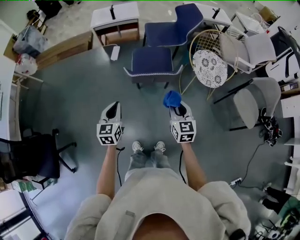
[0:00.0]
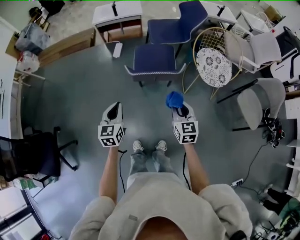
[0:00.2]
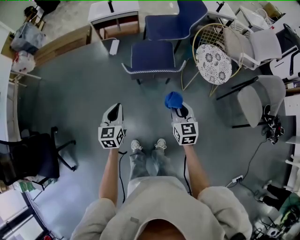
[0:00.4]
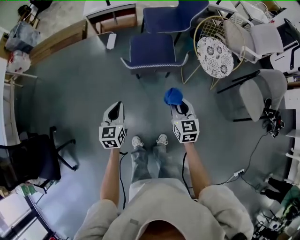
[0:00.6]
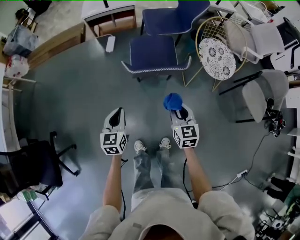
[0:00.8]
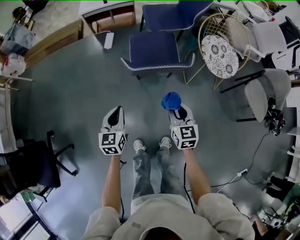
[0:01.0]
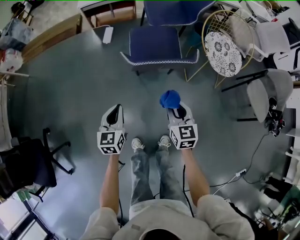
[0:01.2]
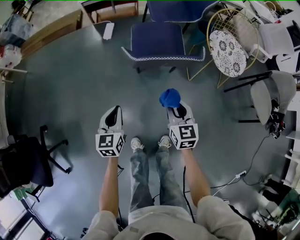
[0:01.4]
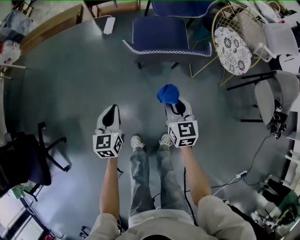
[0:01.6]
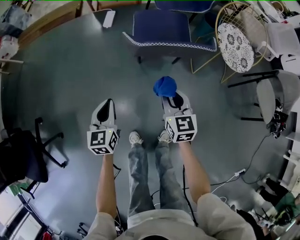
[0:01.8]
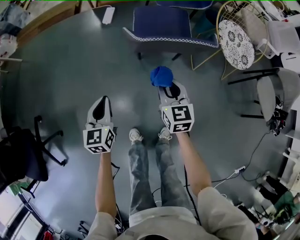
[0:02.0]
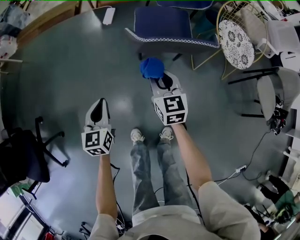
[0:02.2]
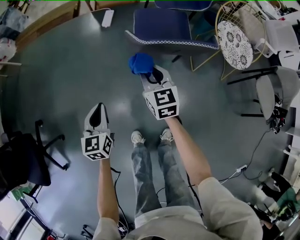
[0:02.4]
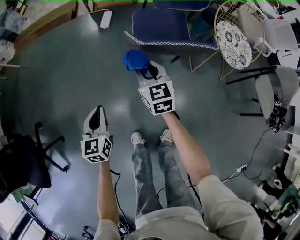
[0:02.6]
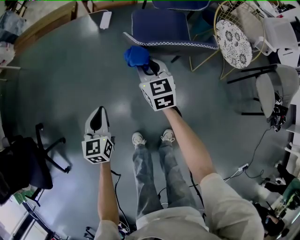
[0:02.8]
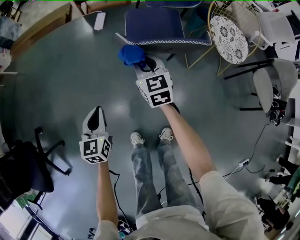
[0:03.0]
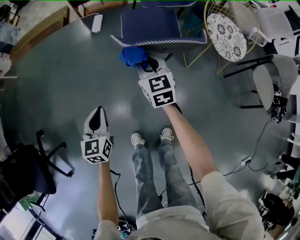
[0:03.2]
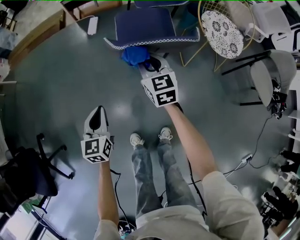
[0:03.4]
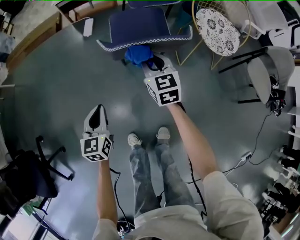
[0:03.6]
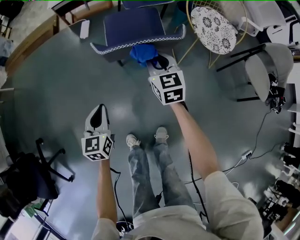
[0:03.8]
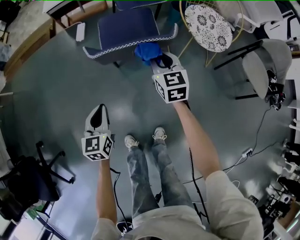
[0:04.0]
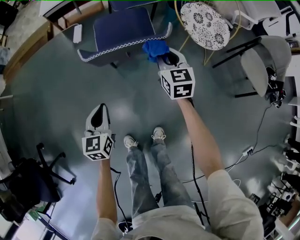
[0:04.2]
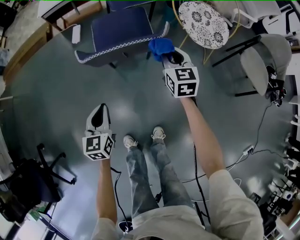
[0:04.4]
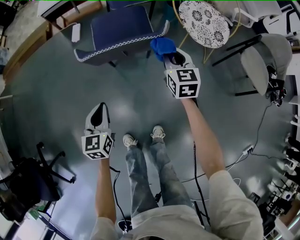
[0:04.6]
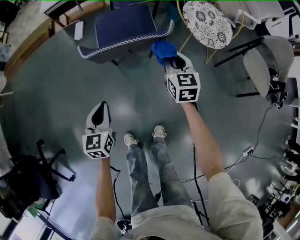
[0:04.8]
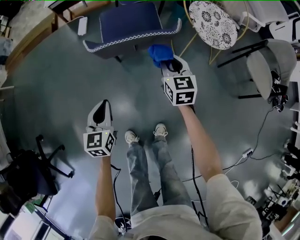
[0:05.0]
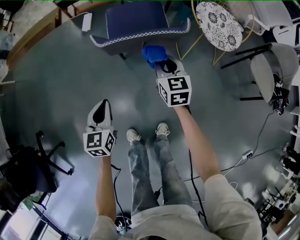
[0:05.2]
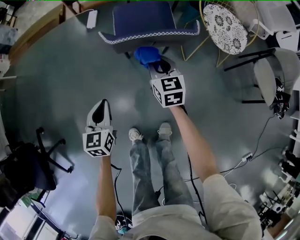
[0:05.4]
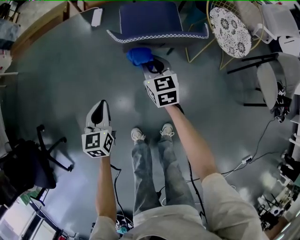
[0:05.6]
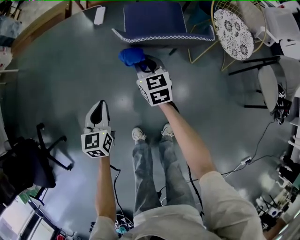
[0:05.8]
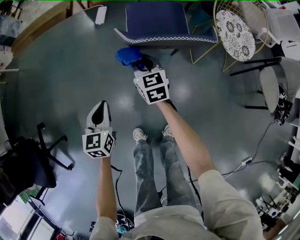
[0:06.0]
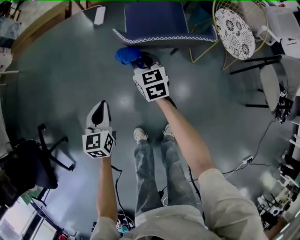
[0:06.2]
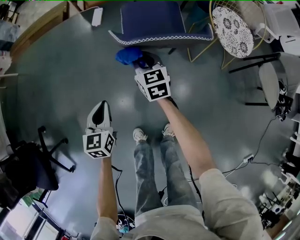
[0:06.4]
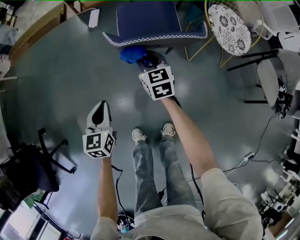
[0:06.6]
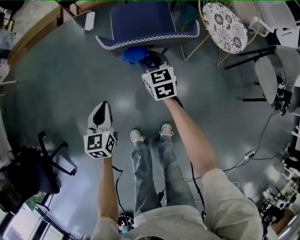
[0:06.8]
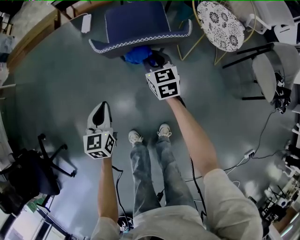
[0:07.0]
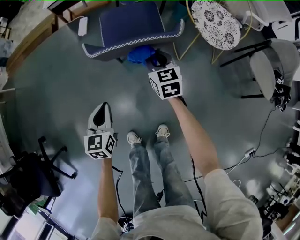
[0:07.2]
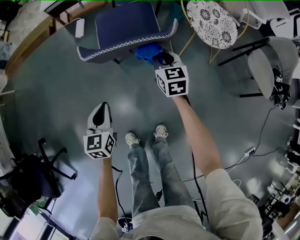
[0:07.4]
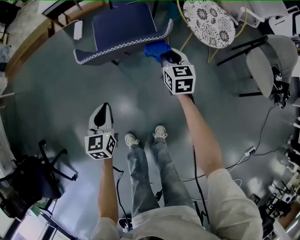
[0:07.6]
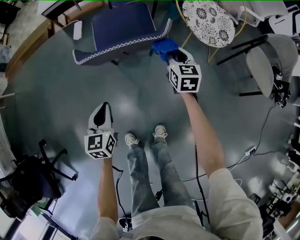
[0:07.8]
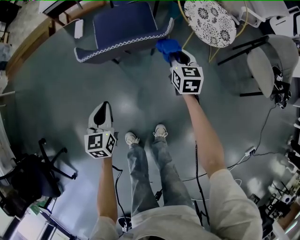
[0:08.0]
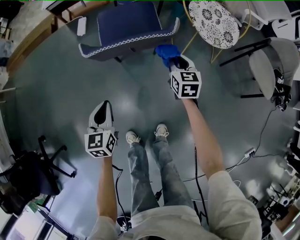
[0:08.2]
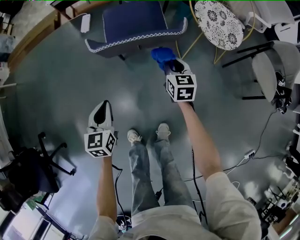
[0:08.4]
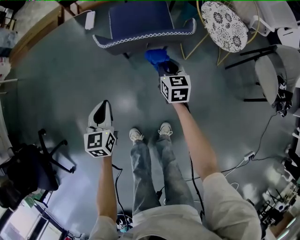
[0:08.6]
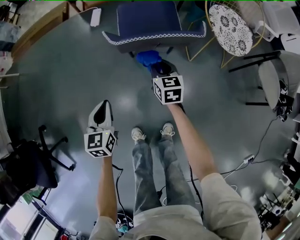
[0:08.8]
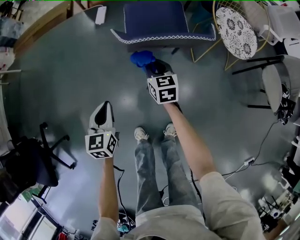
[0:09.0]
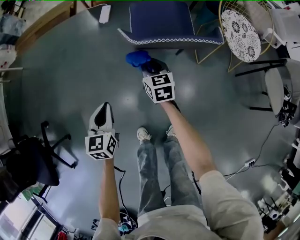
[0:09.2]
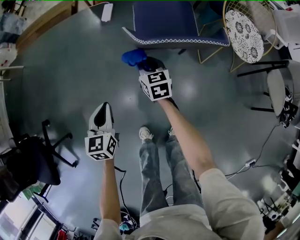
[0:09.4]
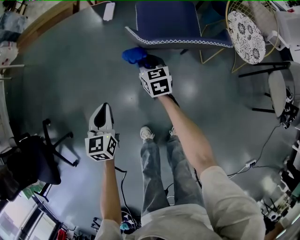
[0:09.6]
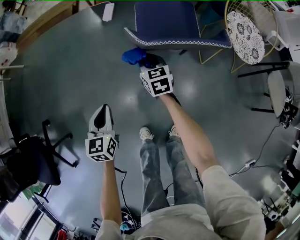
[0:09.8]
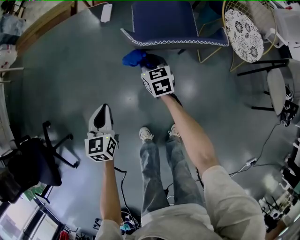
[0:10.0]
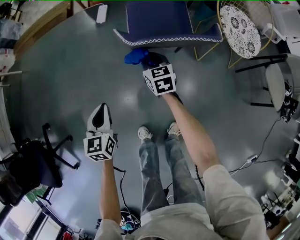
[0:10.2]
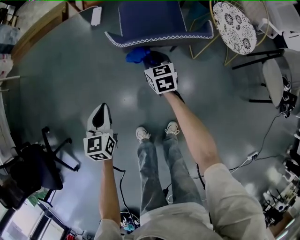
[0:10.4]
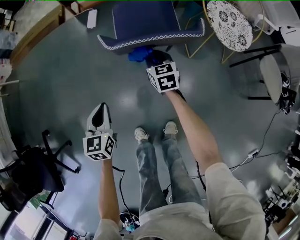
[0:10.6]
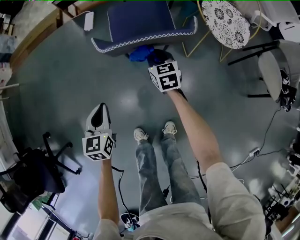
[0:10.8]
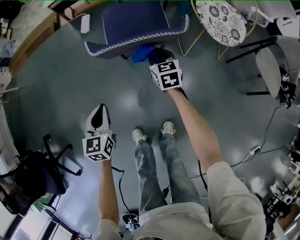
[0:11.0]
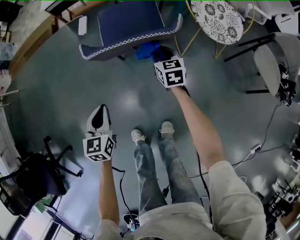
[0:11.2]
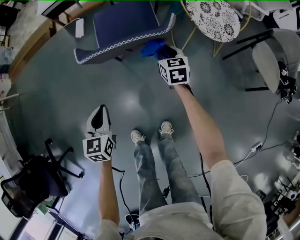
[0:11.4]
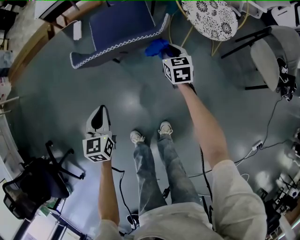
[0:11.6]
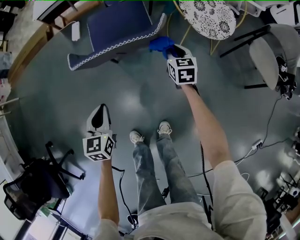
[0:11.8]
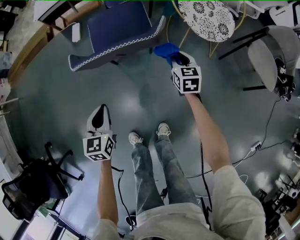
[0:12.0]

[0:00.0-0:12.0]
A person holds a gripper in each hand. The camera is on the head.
0:00.0 to 0:01.6: The right gripper shifts some 25 cm downward and to the left, while the left gripper is displaced downward by roughly 25 cm.
0:01.6 to 0:03.0: The left gripper travels to the left by approximately 5 cm; the right gripper goes roughly 15 cm forward and to the left.
0:03.0 to 0:04.4: The right gripper heads to the right, covering approximately 30 cm. Meanwhile the left gripper travels to the right by about 20 cm.
0:04.4 to 0:06.0: The left gripper is displaced to the left by some 15 cm. The right gripper heads to the left, covering about 30 cm, and turns by approximately 20 degrees.
0:06.0 to 0:07.6: The left gripper travels to the right by some 15 cm, while the right gripper moves to the right, about 30 cm.
0:07.6 to 0:09.0: The right gripper travels to the left by approximately 20 cm, while the left gripper shifts about 15 cm to the left.
0:09.0 to 0:10.4: The right gripper reaches about 10 cm to the left, then returns.
0:10.4 to 0:12.0: The right gripper moves to the right, some 30 cm. The left gripper is displaced to the right by some 15 cm.

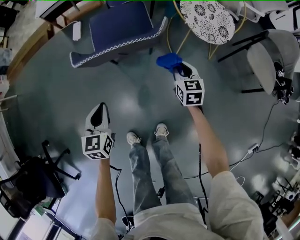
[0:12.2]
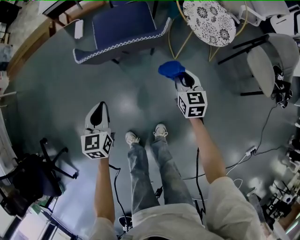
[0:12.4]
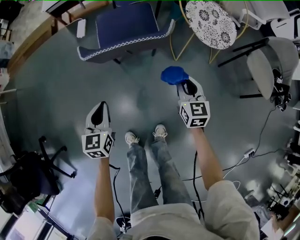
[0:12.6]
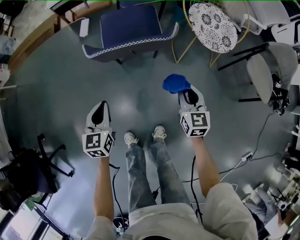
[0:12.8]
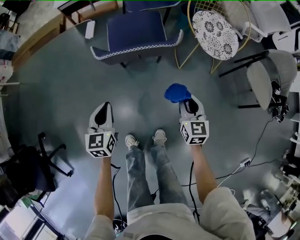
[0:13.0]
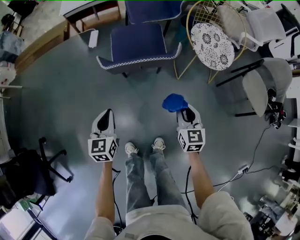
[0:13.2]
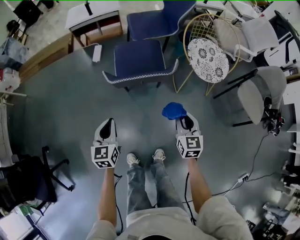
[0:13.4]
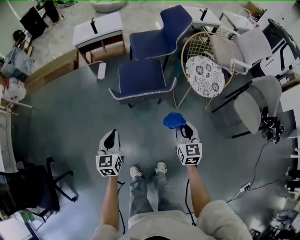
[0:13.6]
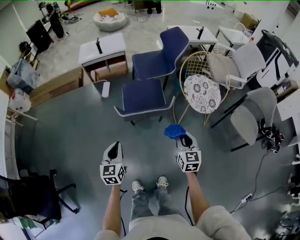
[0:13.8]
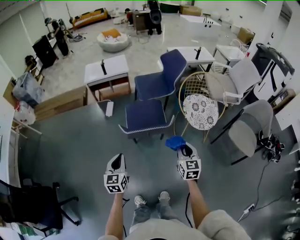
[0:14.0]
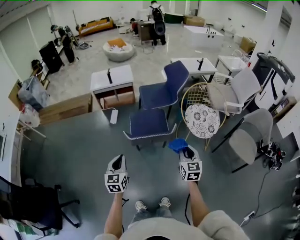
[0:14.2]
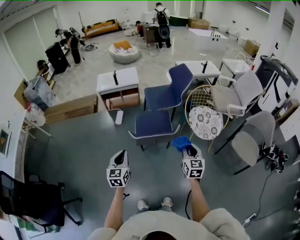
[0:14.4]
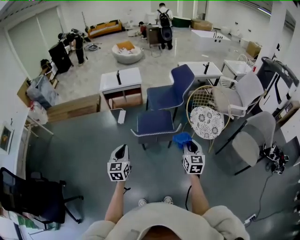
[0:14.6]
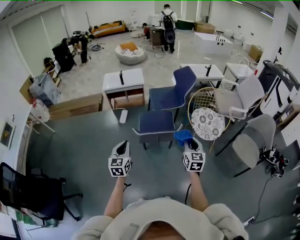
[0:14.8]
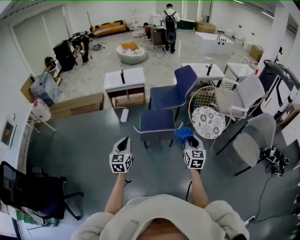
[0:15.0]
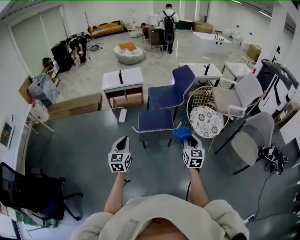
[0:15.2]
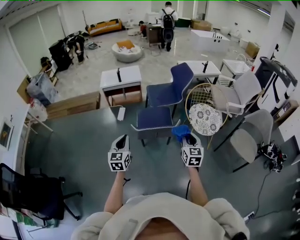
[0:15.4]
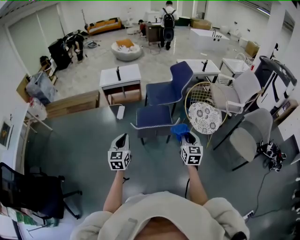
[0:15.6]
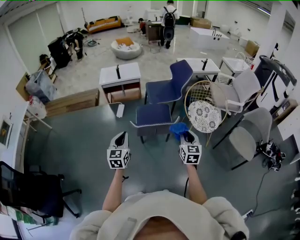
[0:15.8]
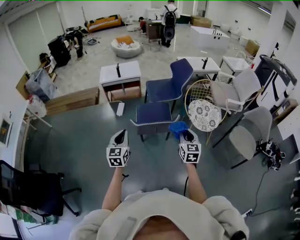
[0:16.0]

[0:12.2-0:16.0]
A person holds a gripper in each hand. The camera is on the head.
0:12.2 to 0:13.4: The left gripper travels upward by approximately 10 cm; the right gripper goes approximately 20 cm upward and backward.
0:13.4 to 0:14.8: The grippers both shift upward by approximately 20 cm.
0:14.8 to 0:16.0: The grippers move only a little.

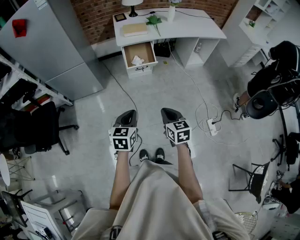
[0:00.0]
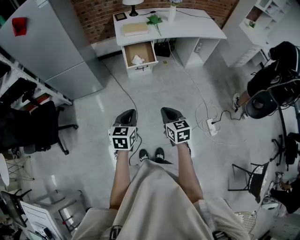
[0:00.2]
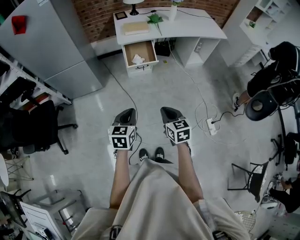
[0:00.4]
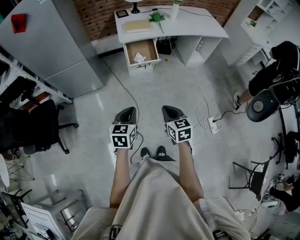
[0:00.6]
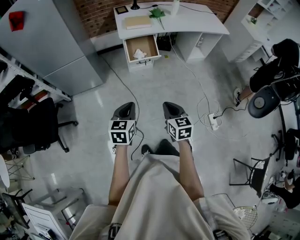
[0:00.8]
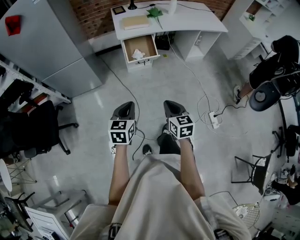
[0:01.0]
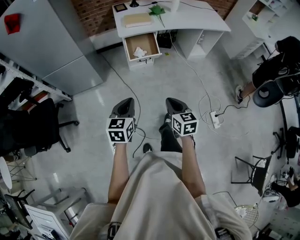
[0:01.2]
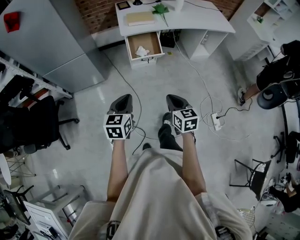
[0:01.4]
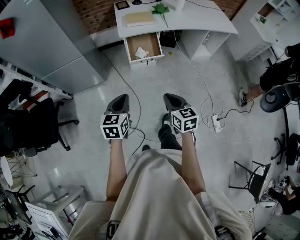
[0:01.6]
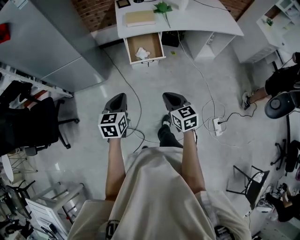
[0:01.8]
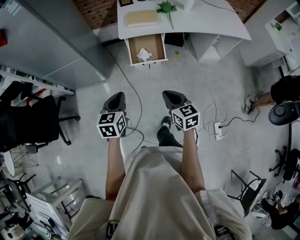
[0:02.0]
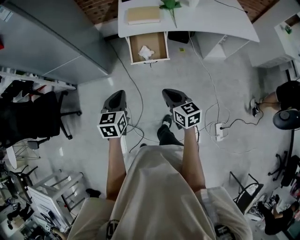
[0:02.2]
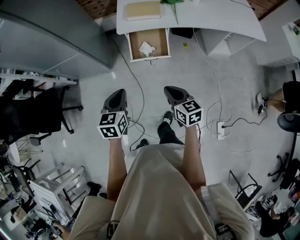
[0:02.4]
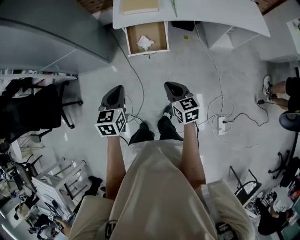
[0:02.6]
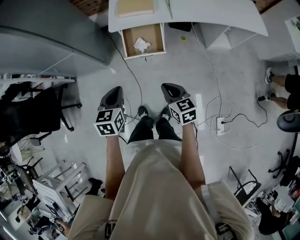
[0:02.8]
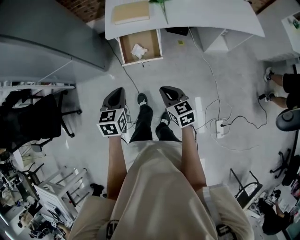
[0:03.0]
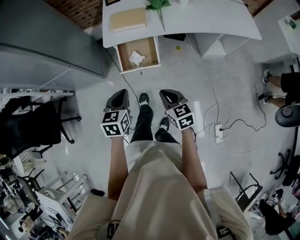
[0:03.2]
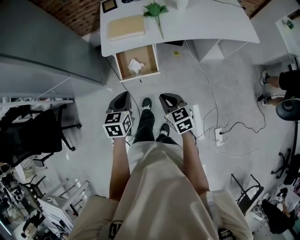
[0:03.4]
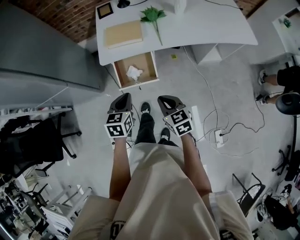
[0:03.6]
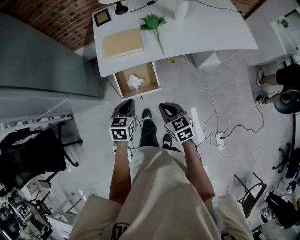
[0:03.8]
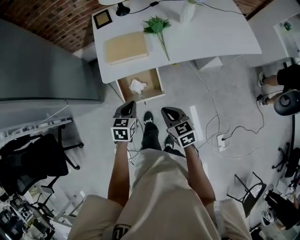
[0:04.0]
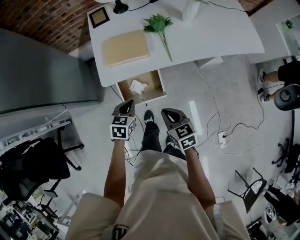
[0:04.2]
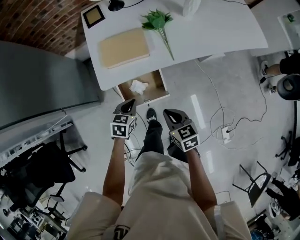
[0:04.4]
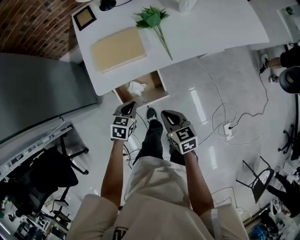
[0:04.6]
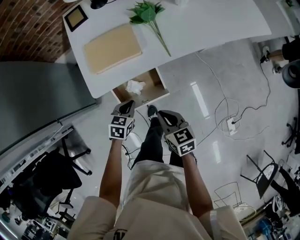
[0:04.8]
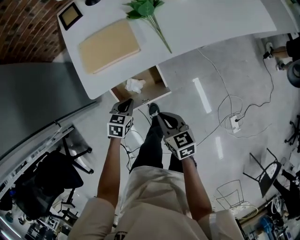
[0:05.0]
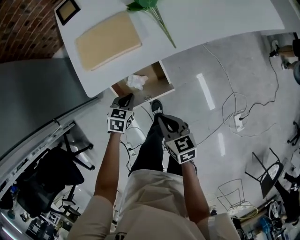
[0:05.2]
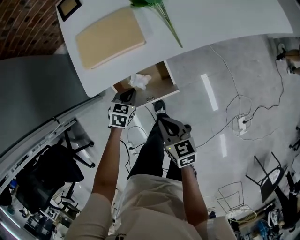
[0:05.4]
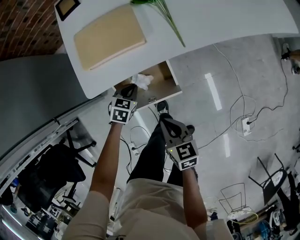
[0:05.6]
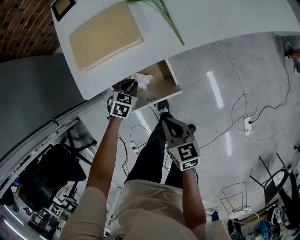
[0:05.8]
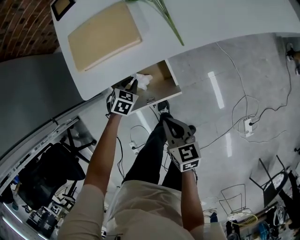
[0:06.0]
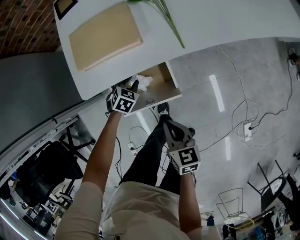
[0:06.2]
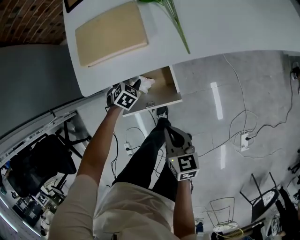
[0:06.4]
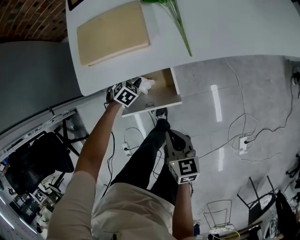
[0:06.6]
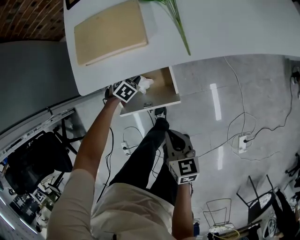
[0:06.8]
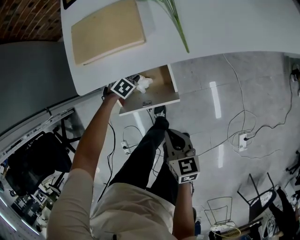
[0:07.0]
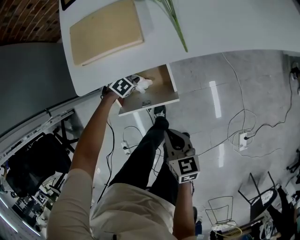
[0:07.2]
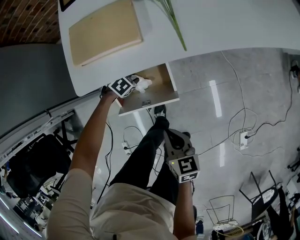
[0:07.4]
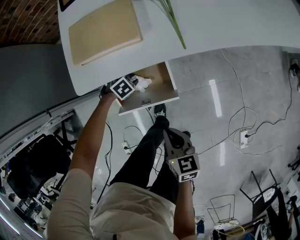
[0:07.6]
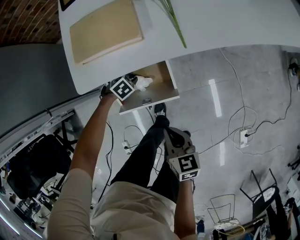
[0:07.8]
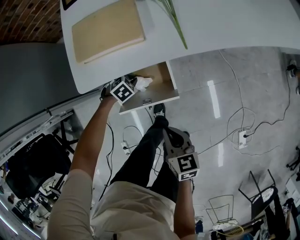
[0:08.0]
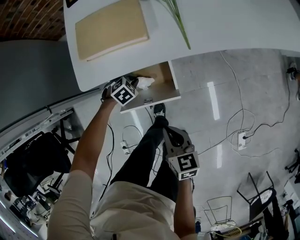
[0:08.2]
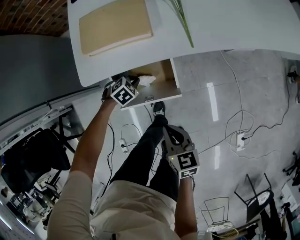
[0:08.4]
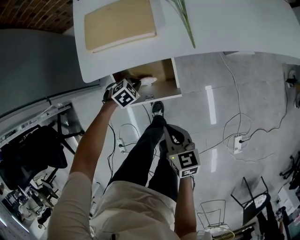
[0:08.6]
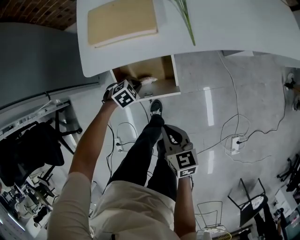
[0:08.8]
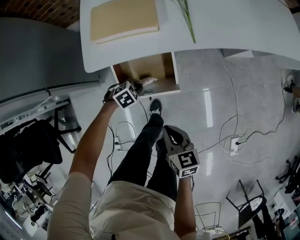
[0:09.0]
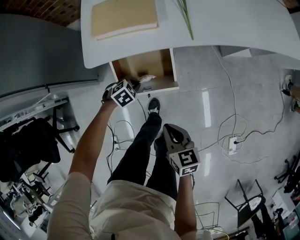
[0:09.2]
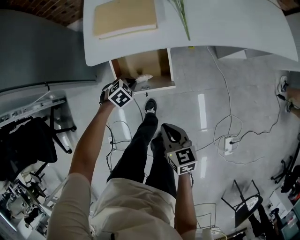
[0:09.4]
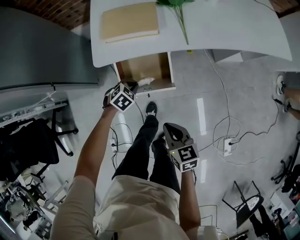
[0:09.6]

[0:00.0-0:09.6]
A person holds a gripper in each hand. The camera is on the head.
0:00.0 to 0:01.6: The left gripper shifts approximately 15 cm forward and to the left. The right gripper heads forward, covering some 15 cm.
0:01.6 to 0:03.2: Both grippers travel together forward and to the right, some 30 cm.
0:03.2 to 0:04.8: Both grippers move forward and downward, about 30 cm. The right gripper turns by approximately 20 degrees, while the left gripper swivels approximately 30 degrees.
0:04.8 to 0:06.4: The left gripper shifts approximately 20 cm downward and forward, rotates approximately 30 degrees, and opens up; the right gripper shifts some 10 cm downward.
0:06.4 to 0:08.0: The left gripper closes.
0:08.0 to 0:09.6: The right gripper goes about 10 cm backward and upward; the left gripper is displaced upward and backward by some 15 cm.
